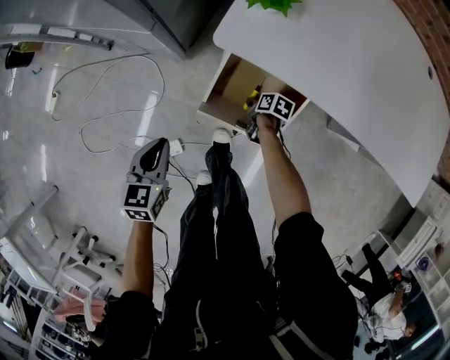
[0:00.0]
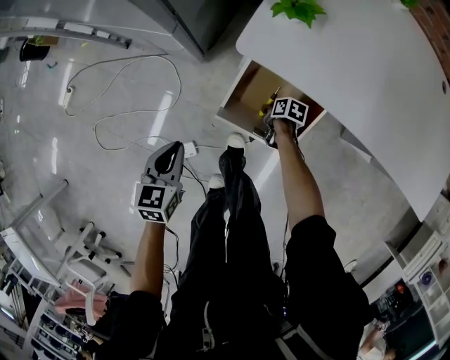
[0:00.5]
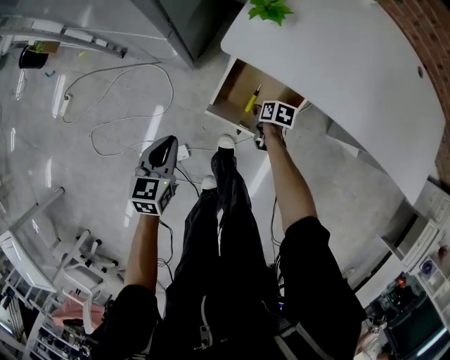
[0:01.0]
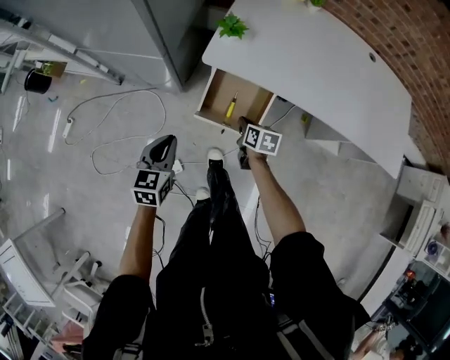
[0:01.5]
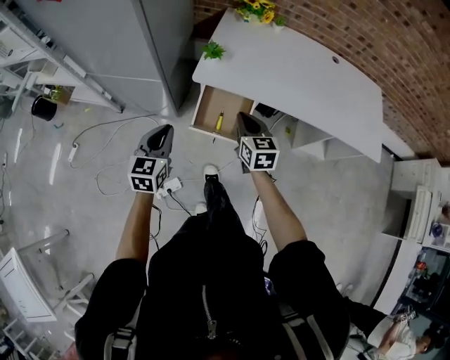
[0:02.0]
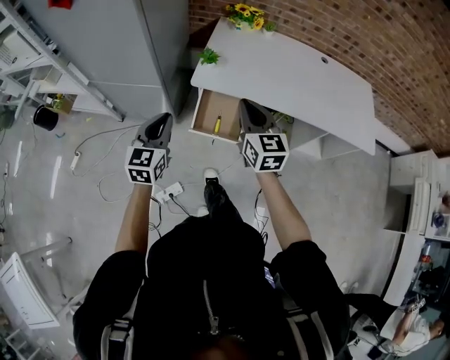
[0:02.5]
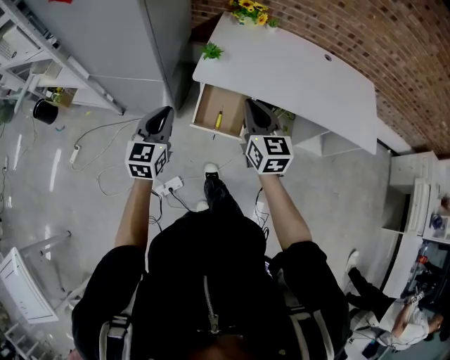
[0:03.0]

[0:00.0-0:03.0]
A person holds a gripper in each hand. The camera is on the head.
0:00.0 to 0:01.5: The left gripper moves upward, some 15 cm. The right gripper moves upward, roughly 25 cm, and swivels approximately 30 degrees.
0:01.5 to 0:03.0: The right gripper goes about 40 cm upward, and angles its fingers upward, by roughly 40 degrees. The left gripper goes roughly 20 cm upward, and rotates roughly 20 degrees.

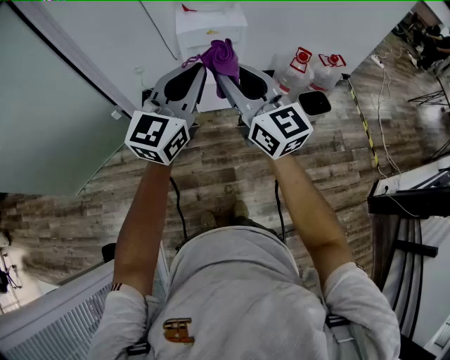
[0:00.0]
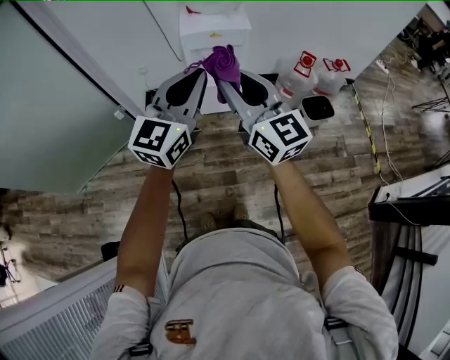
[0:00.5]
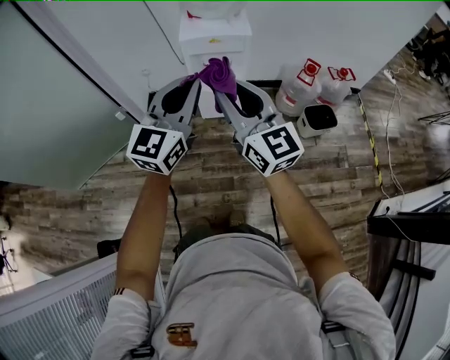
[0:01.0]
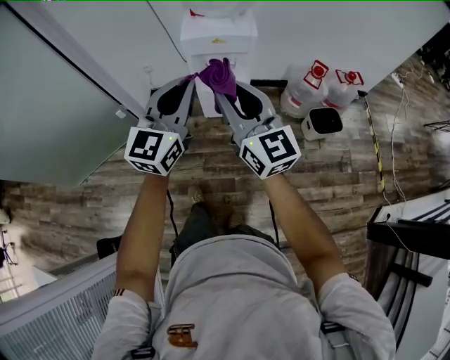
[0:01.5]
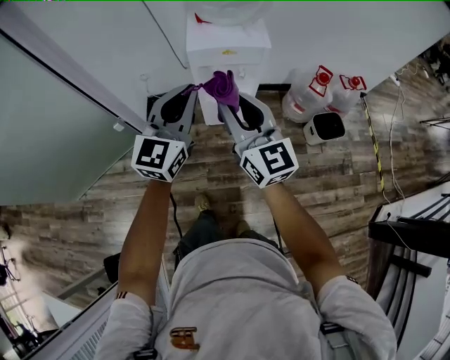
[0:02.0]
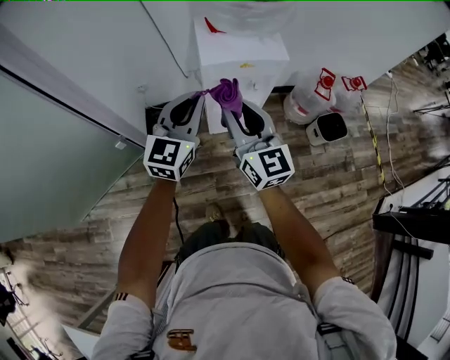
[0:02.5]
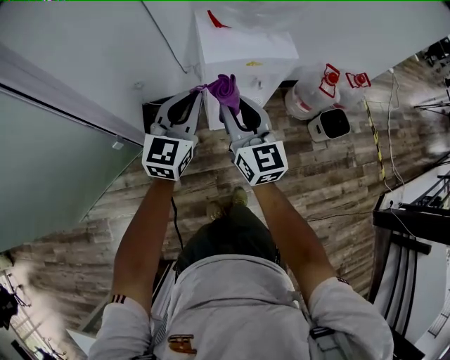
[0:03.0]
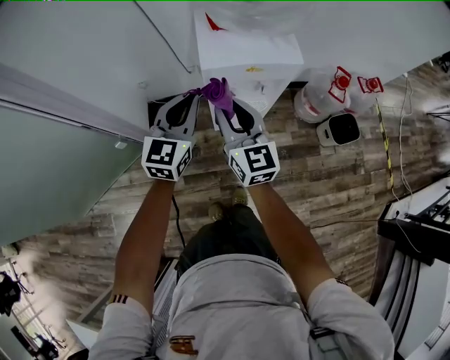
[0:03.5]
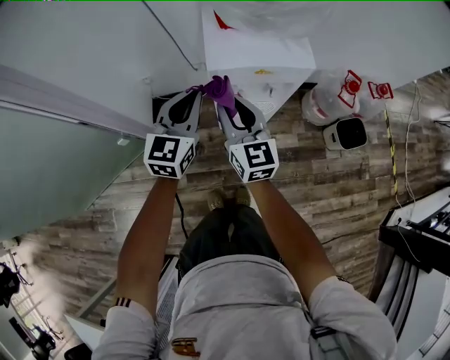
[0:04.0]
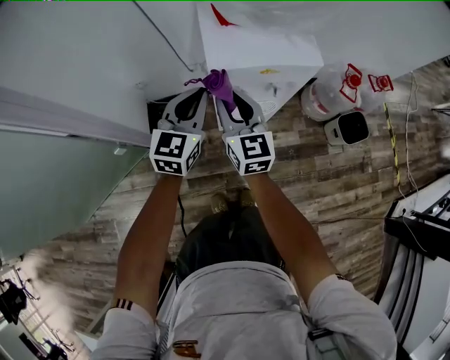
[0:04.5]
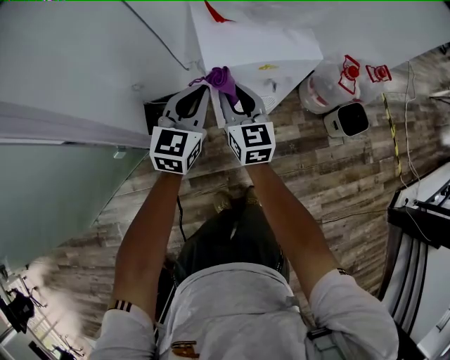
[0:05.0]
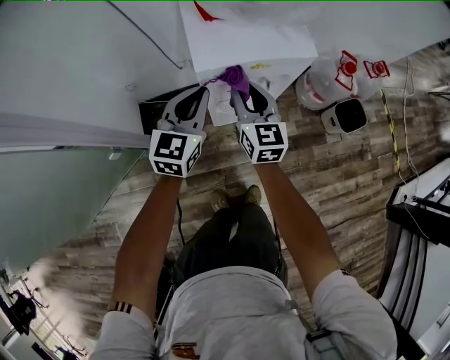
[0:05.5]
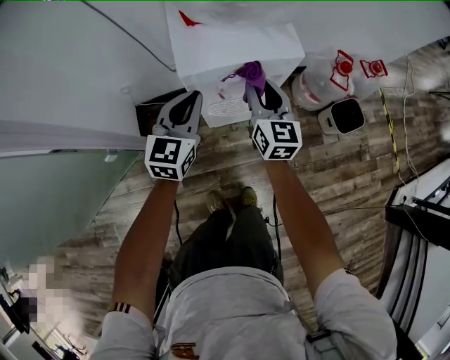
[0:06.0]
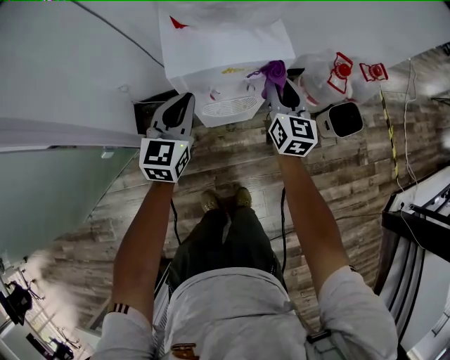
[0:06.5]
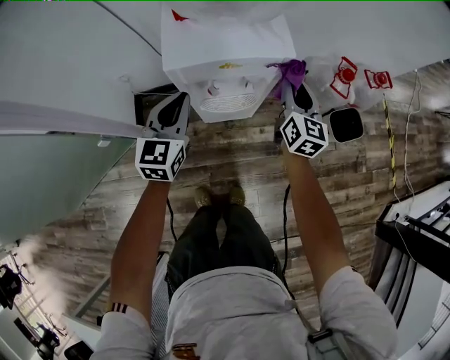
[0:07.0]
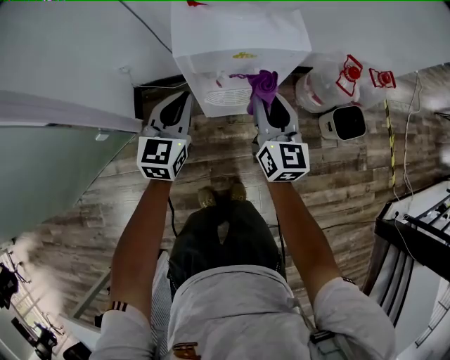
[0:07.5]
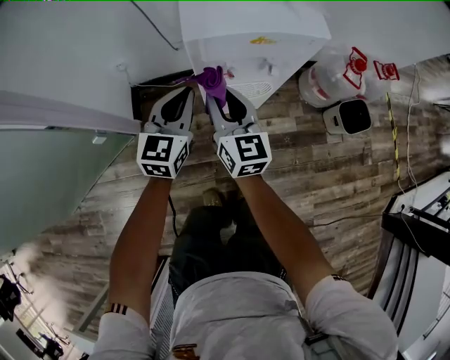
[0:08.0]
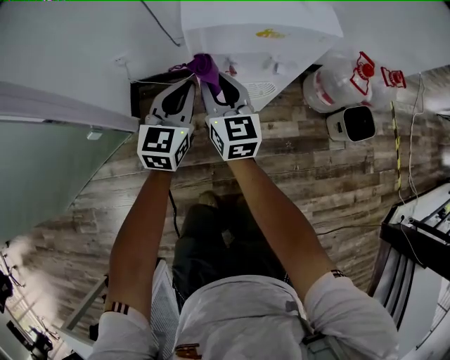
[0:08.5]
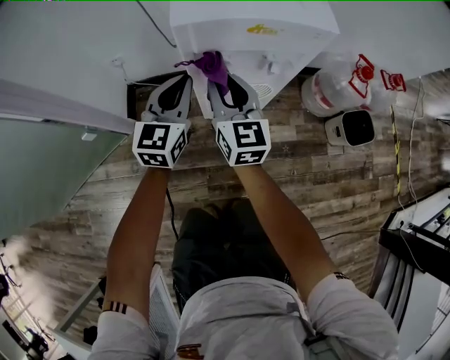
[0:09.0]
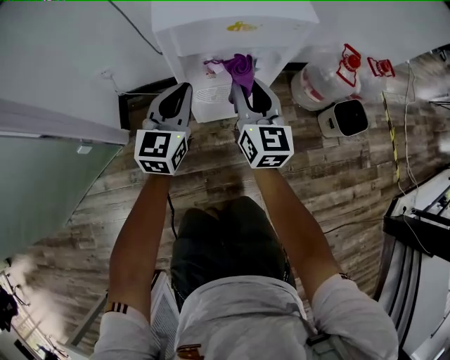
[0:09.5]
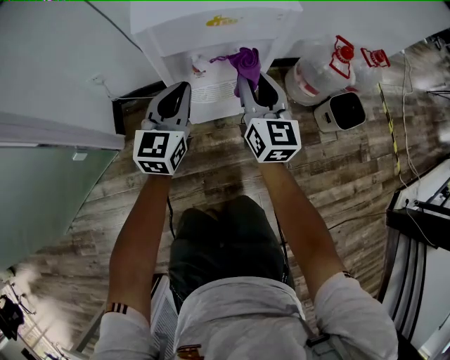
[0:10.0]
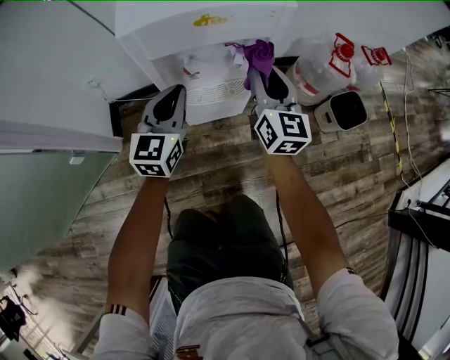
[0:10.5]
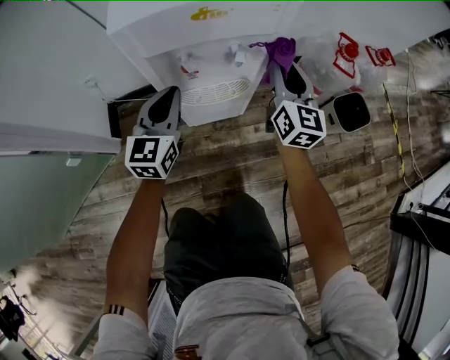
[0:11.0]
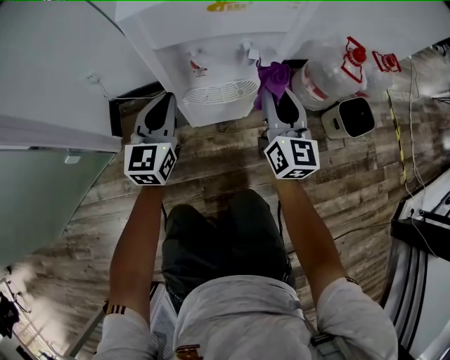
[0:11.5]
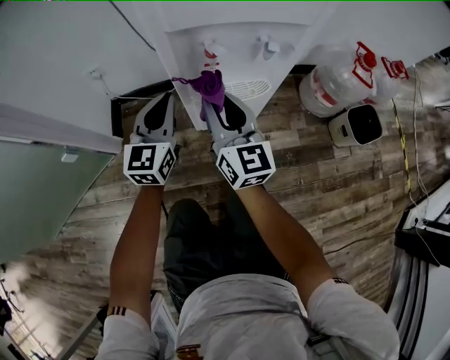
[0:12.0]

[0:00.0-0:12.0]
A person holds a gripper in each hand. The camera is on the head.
0:00.0 to 0:02.0: Both grippers travel together forward and downward, about 20 cm.
0:02.0 to 0:04.0: Both grippers move forward, downward and to the left, some 25 cm.
0:04.0 to 0:06.0: The left gripper moves downward, about 5 cm; the right gripper heads to the right, forward and downward, covering some 15 cm.
0:06.0 to 0:08.0: The left gripper moves downward, approximately 10 cm. The right gripper shifts some 15 cm to the left, backward and downward.
0:08.0 to 0:10.0: The left gripper travels to the right by approximately 5 cm, while the right gripper goes approximately 15 cm to the right.
0:10.0 to 0:12.0: The left gripper goes roughly 15 cm downward and to the left. Meanwhile the right gripper moves to the left and downward, roughly 15 cm.

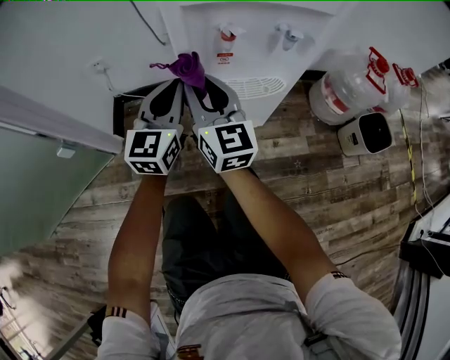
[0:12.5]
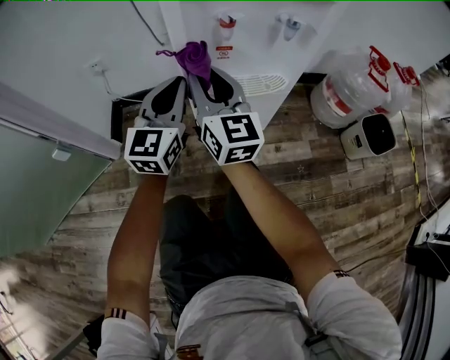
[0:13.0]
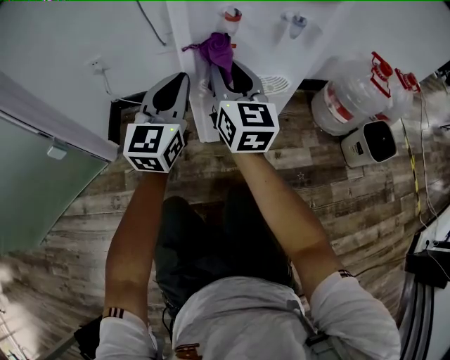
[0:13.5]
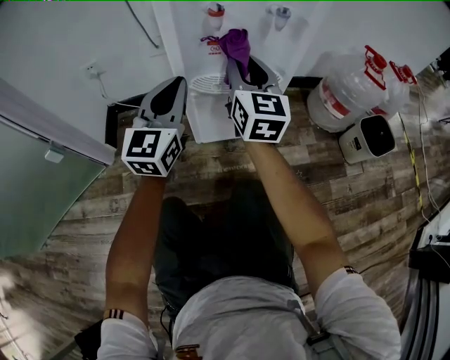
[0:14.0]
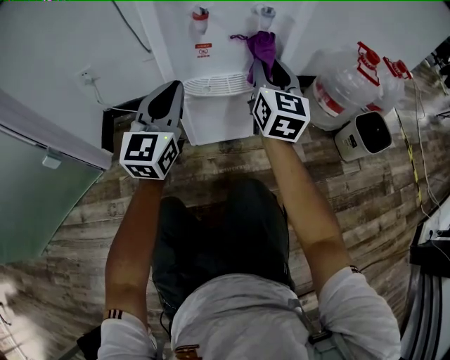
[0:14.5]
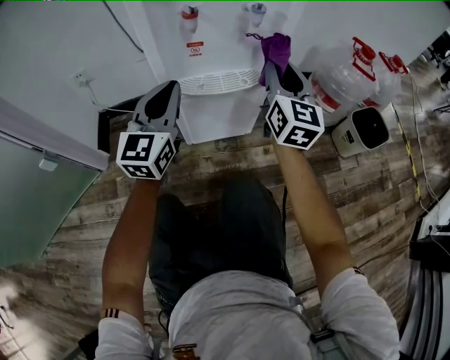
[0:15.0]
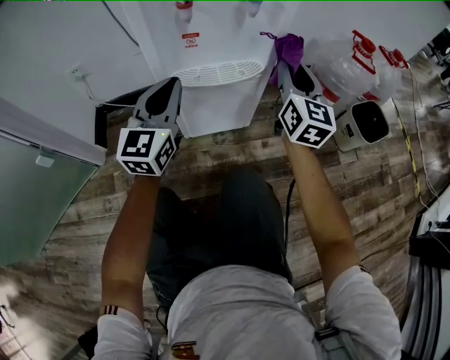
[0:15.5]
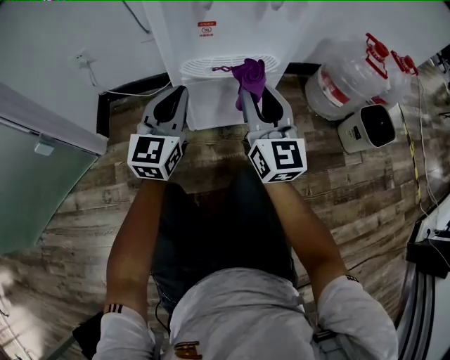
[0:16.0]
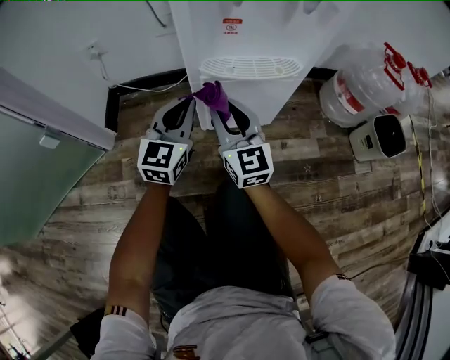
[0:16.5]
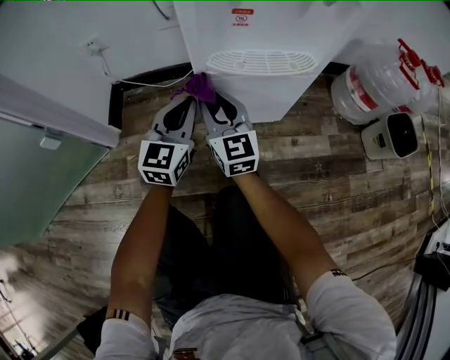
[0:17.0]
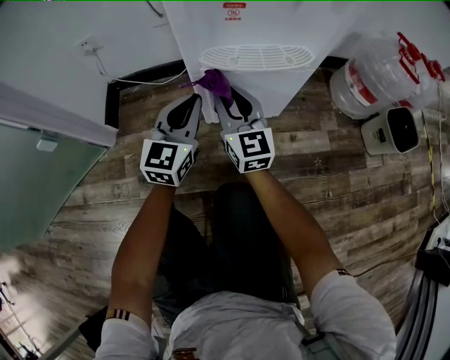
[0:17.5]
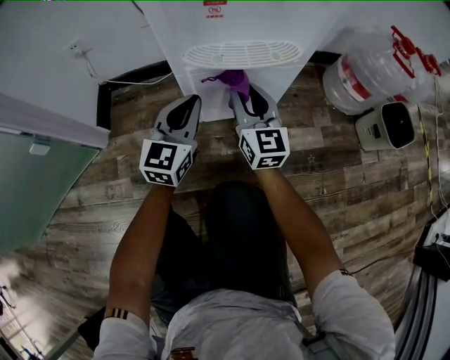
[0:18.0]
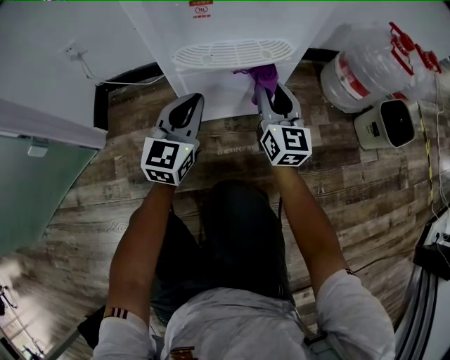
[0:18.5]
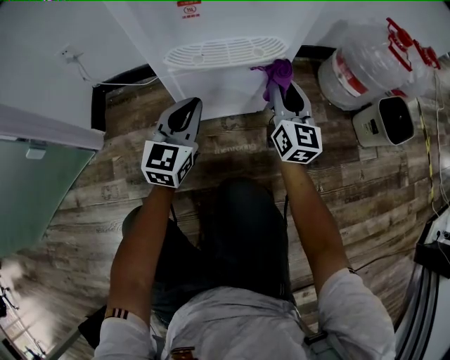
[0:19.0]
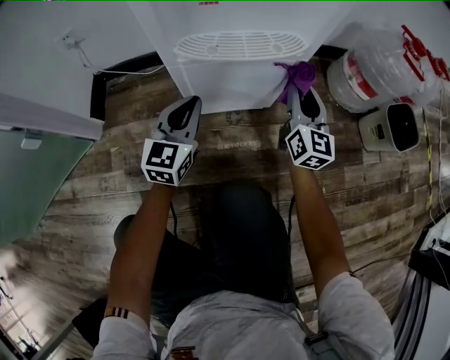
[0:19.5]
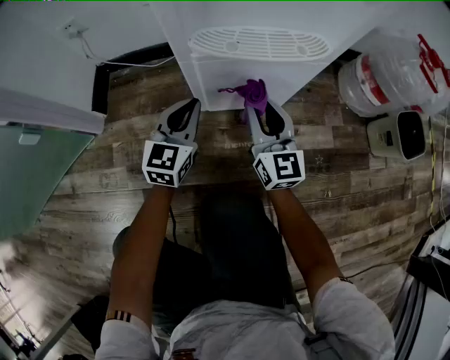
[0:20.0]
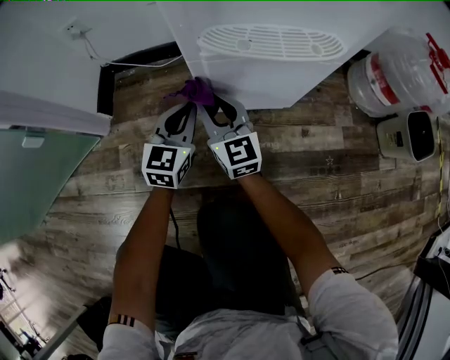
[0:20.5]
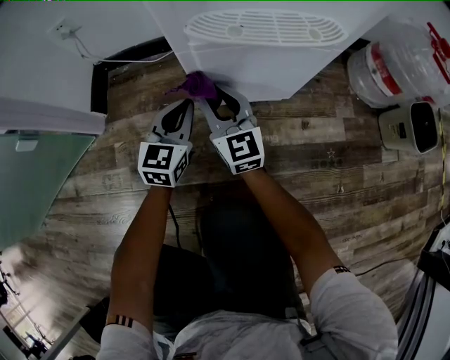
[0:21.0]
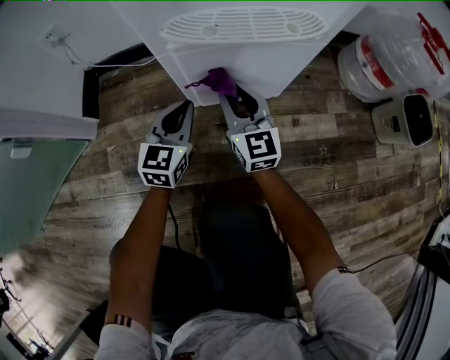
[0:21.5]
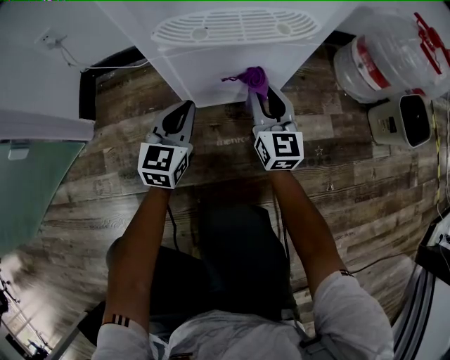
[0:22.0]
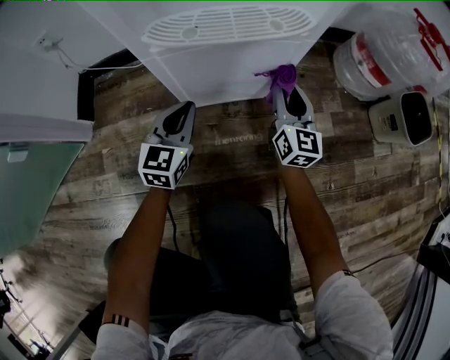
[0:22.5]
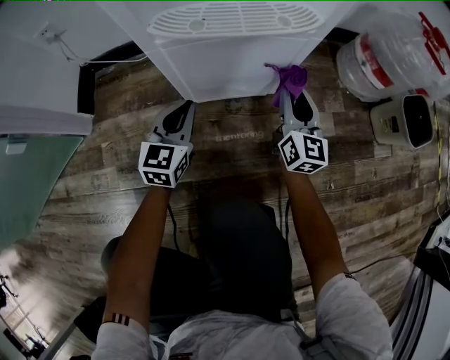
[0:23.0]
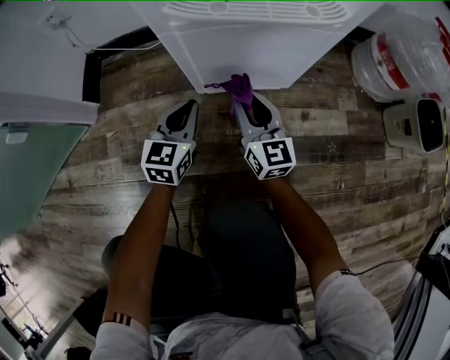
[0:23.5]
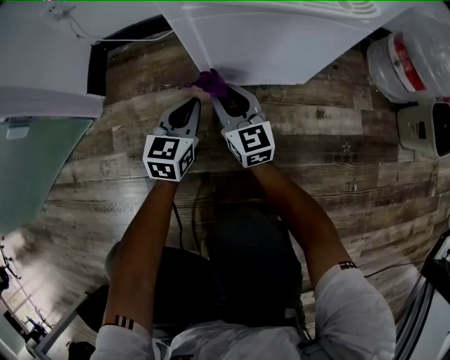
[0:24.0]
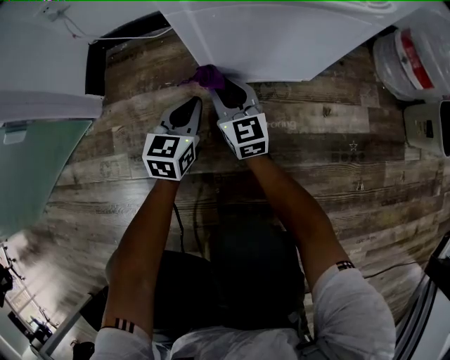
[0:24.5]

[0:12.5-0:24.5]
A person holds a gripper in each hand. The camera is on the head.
0:12.5 to 0:14.5: The left gripper changes place by roughly 5 cm. The right gripper goes some 20 cm to the right, and swivels approximately 20 degrees.
0:14.5 to 0:16.5: The left gripper shifts approximately 10 cm downward; the right gripper is displaced to the left, downward and backward by approximately 25 cm, and swivels approximately 20 degrees.
0:16.5 to 0:18.5: The left gripper travels to the right by some 5 cm. The right gripper goes some 15 cm to the right and forward.
0:18.5 to 0:20.5: The left gripper travels downward and to the left by about 15 cm, while the right gripper goes some 20 cm to the left, and swivels about 20 degrees.
0:20.5 to 0:22.5: The left gripper heads to the right, covering about 5 cm. Meanwhile the right gripper is displaced to the right by about 25 cm, and changes its angle by roughly 30 degrees.
0:22.5 to 0:24.5: The left gripper shifts approximately 10 cm downward and to the left. Meanwhile the right gripper heads to the left and downward, covering approximately 30 cm, and changes its angle by roughly 30 degrees.
